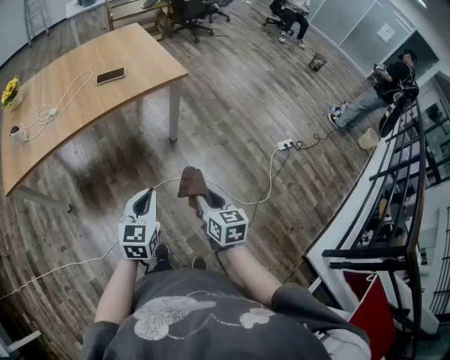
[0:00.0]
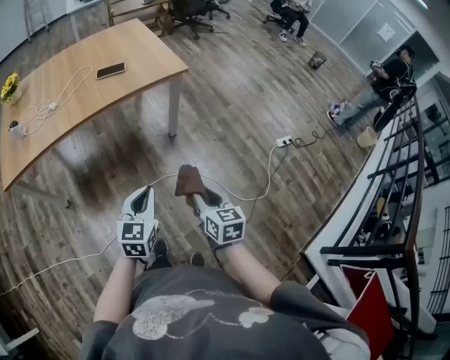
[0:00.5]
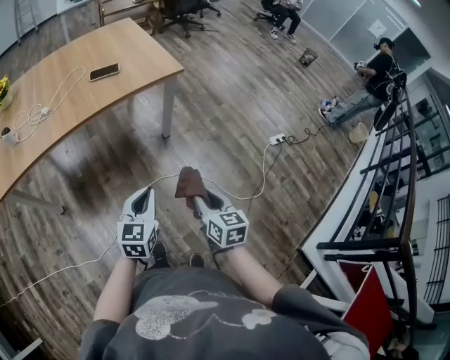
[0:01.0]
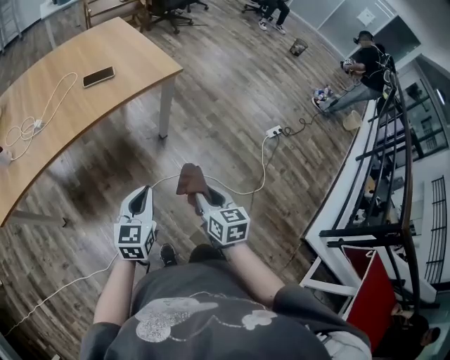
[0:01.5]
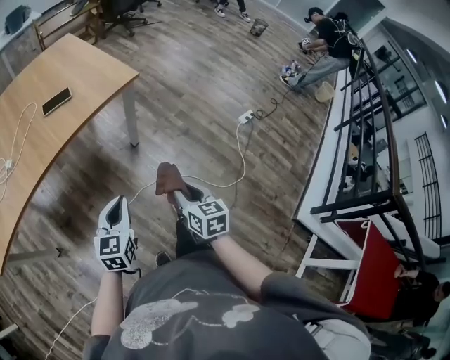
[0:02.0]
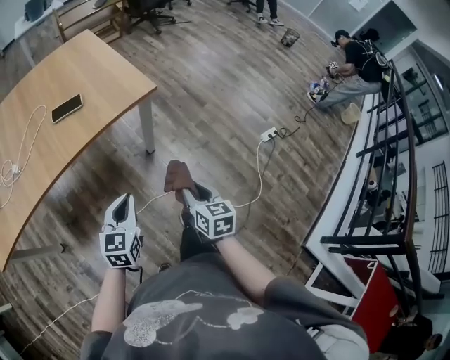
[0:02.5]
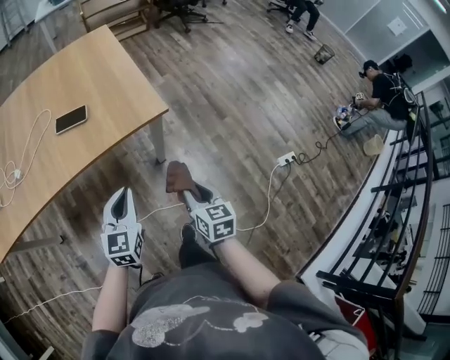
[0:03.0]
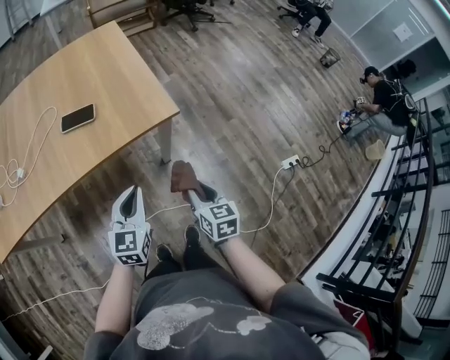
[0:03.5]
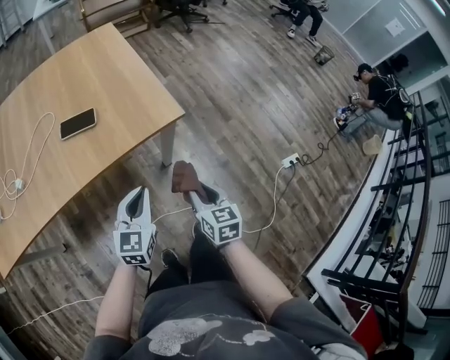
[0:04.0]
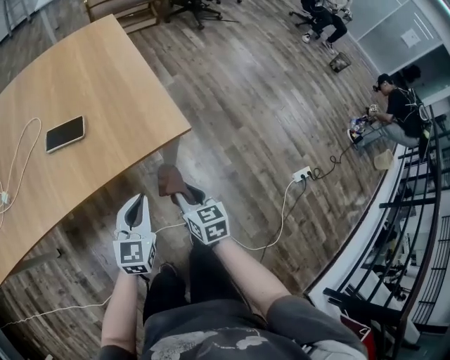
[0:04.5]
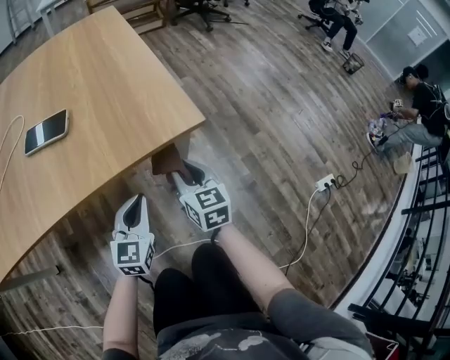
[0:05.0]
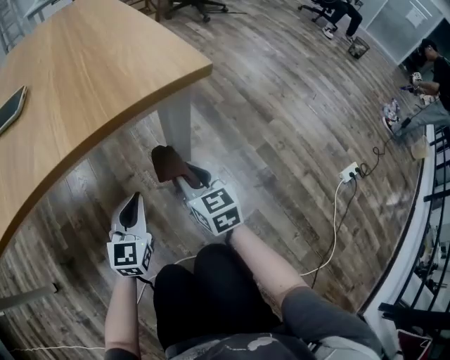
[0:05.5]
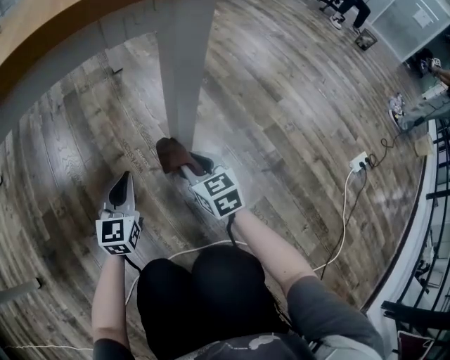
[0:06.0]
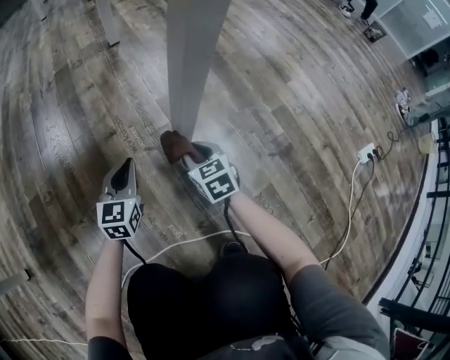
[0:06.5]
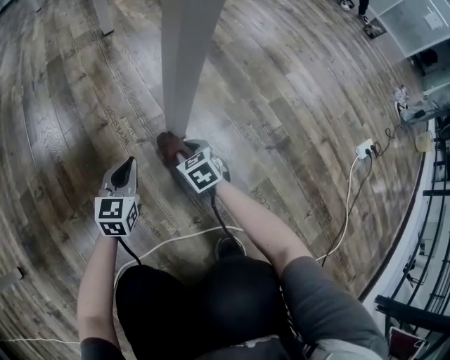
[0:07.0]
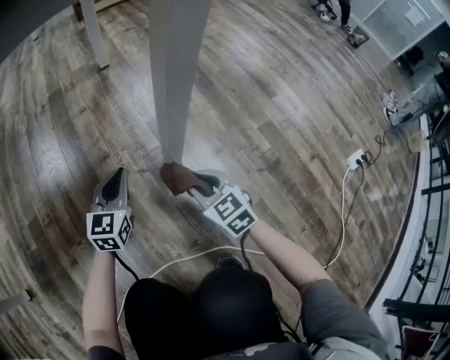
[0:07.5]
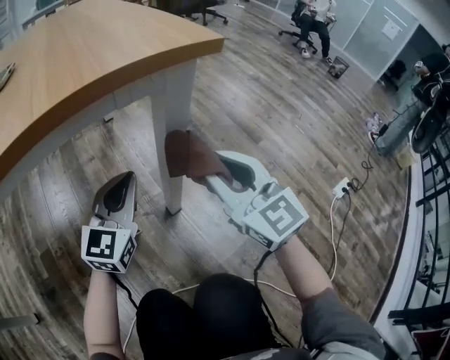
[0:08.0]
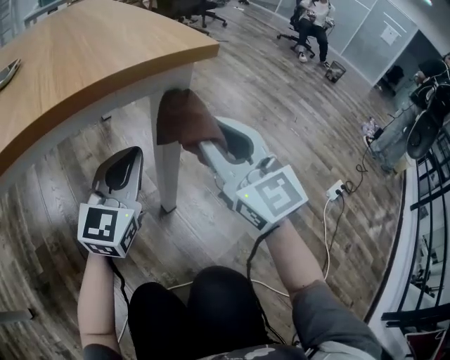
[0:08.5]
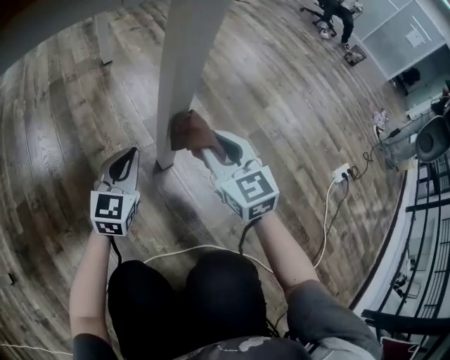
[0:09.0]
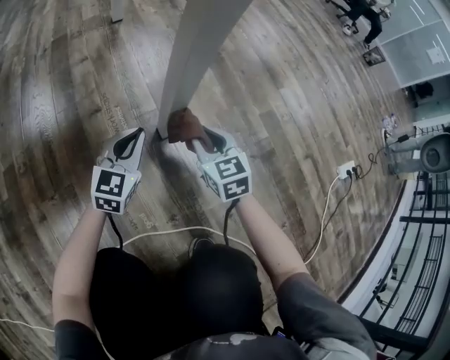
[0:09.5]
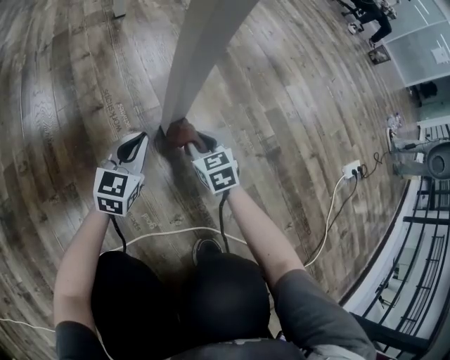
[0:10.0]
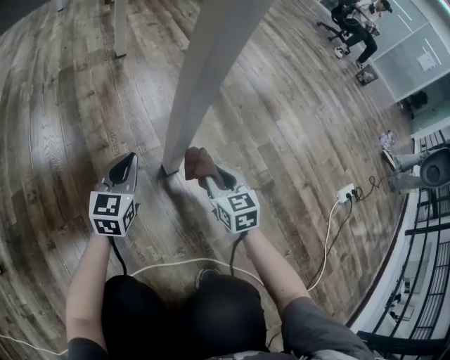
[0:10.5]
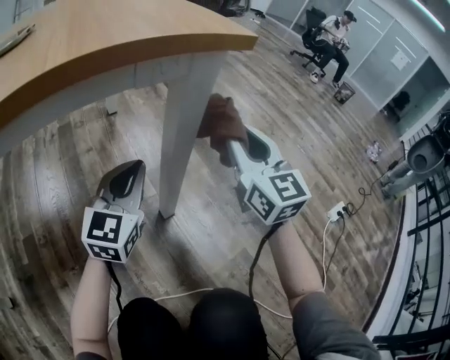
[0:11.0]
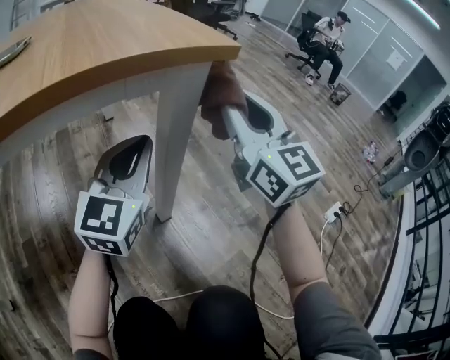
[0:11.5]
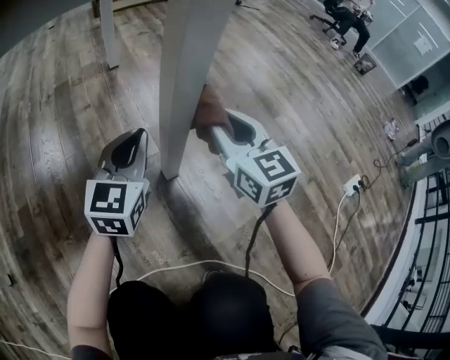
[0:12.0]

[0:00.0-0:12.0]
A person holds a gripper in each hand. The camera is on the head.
0:00.0 to 0:02.0: The right gripper is displaced forward by roughly 5 cm, while the left gripper moves forward and to the left, some 10 cm.
0:02.0 to 0:04.0: Both grippers travel together forward, some 25 cm.
0:04.0 to 0:06.0: The right gripper moves downward and forward, approximately 50 cm; the left gripper is displaced downward by some 50 cm.
0:06.0 to 0:08.0: The right gripper travels upward by roughly 25 cm, and turns by roughly 30 degrees. Meanwhile the left gripper shifts approximately 15 cm upward.
0:08.0 to 0:10.0: The grippers both shift downward by roughly 35 cm. The right gripper points its fingers some 40 degrees further downward.
0:10.0 to 0:12.0: The right gripper goes approximately 30 cm upward, and turns by roughly 30 degrees; the left gripper moves upward, roughly 20 cm.

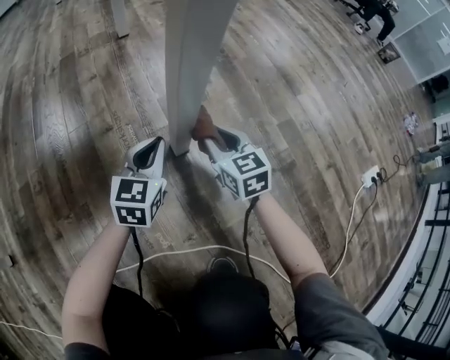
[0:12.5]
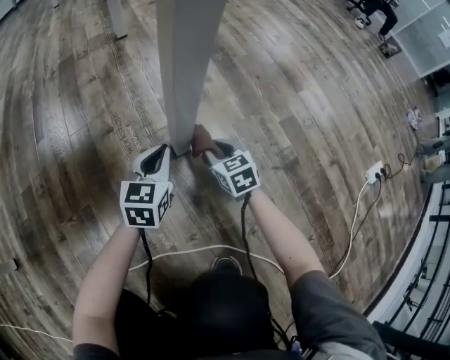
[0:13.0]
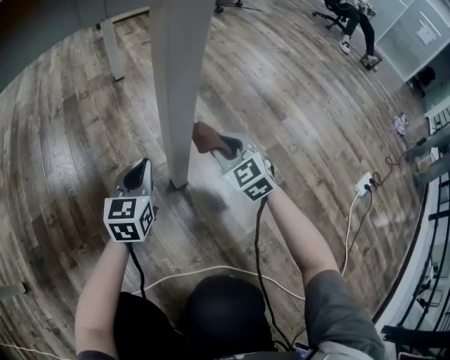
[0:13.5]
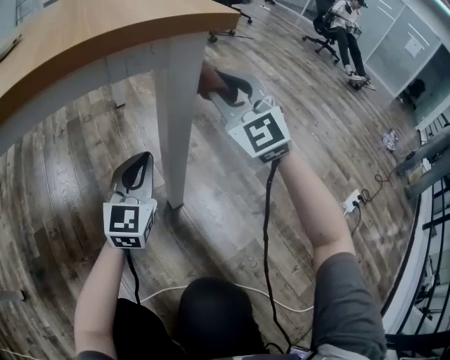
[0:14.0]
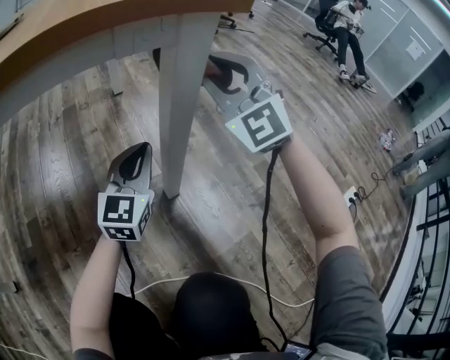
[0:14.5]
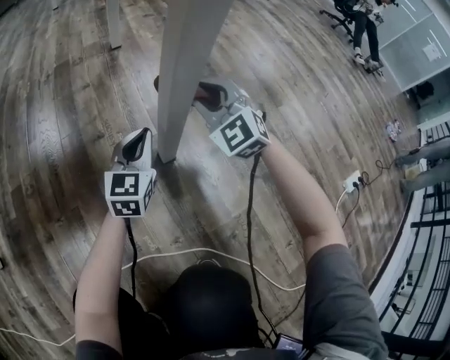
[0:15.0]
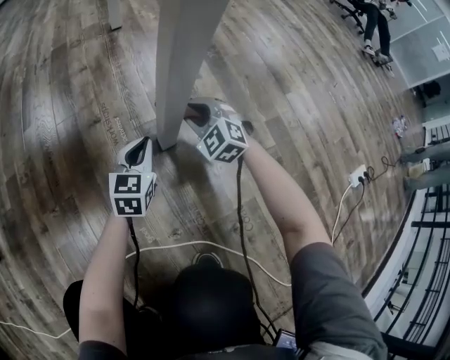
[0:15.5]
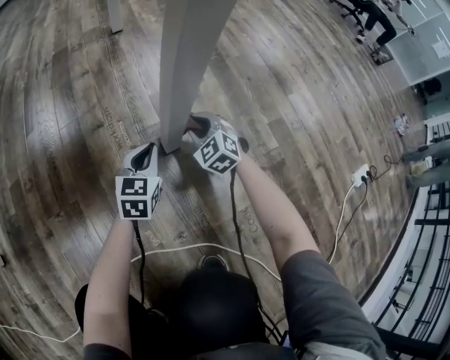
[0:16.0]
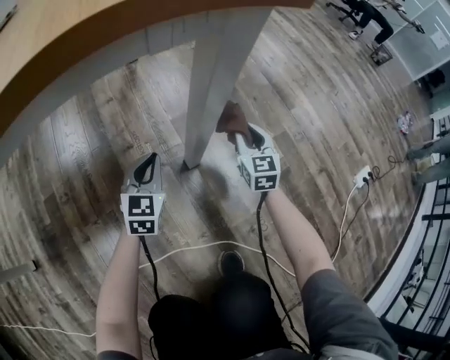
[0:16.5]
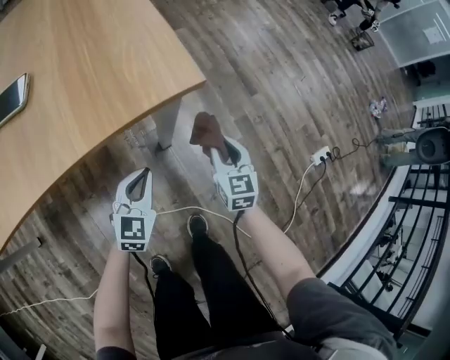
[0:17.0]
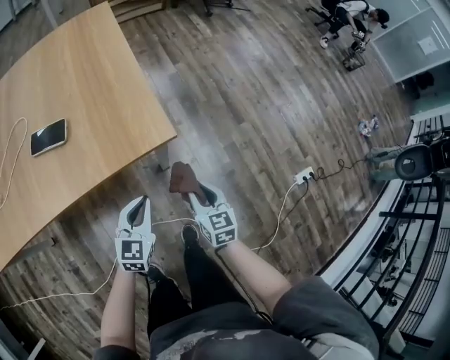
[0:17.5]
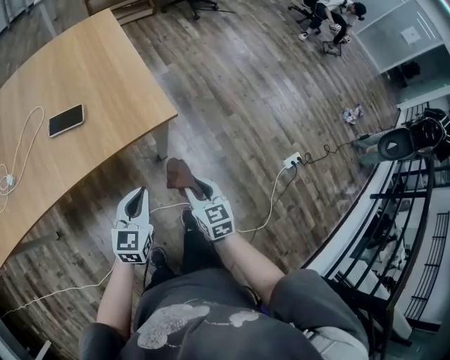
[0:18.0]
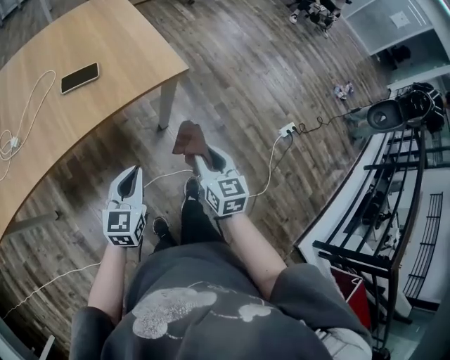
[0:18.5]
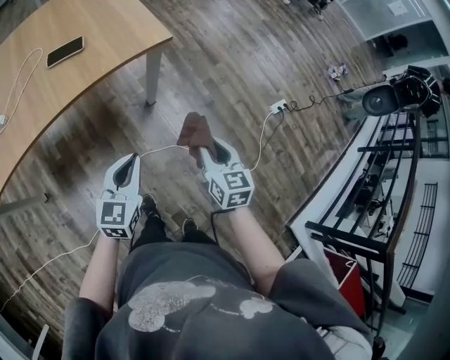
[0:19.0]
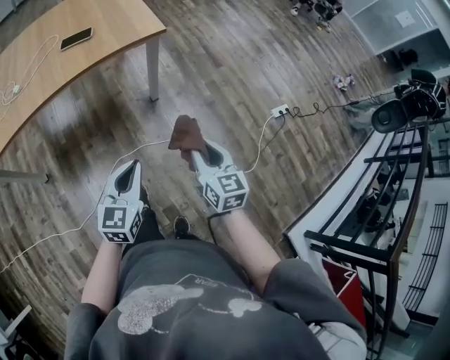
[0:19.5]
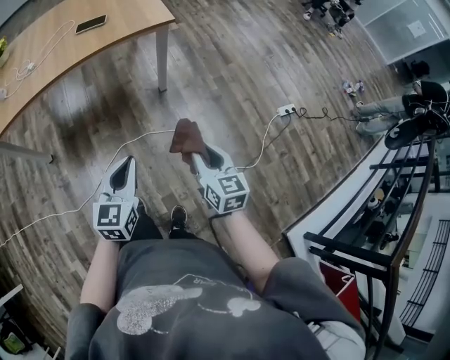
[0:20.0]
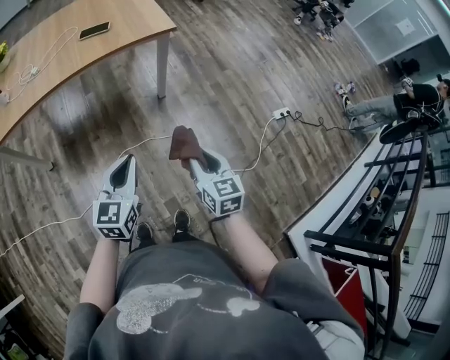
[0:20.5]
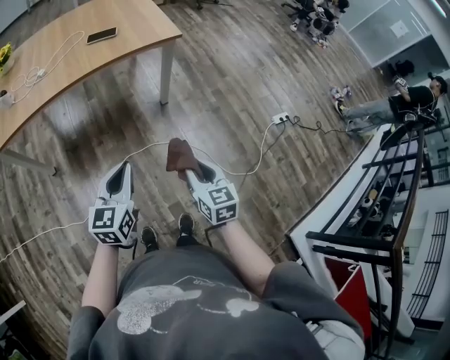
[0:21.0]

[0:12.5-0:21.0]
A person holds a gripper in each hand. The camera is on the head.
0:12.5 to 0:14.5: The left gripper is displaced upward by some 20 cm, and turns by approximately 20 degrees; the right gripper goes some 35 cm upward, and rotates around the line of its fingers by roughly 60 degrees, counterclockwise from behind.
0:14.5 to 0:16.5: The left gripper moves downward and to the left, about 15 cm, and turns by approximately 20 degrees. Meanwhile the right gripper heads downward, covering approximately 30 cm, and rotates approximately 60 degrees.
0:16.5 to 0:19.0: The grippers both shift upward and backward by some 60 cm.
0:19.0 to 0:21.0: Both grippers move backward, approximately 25 cm.

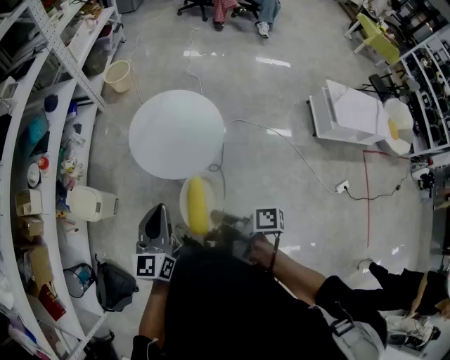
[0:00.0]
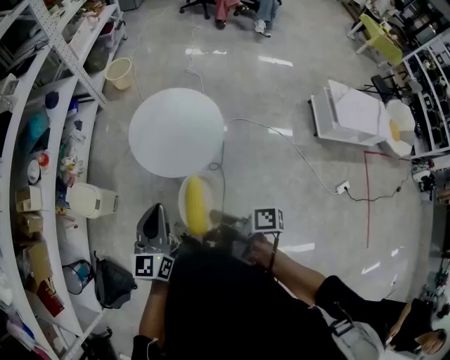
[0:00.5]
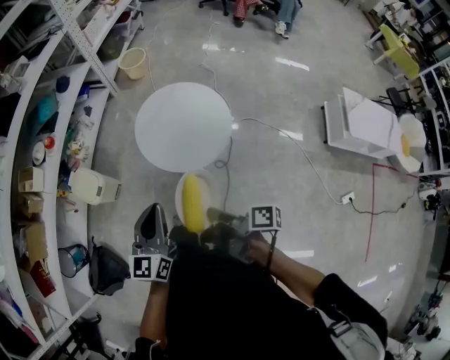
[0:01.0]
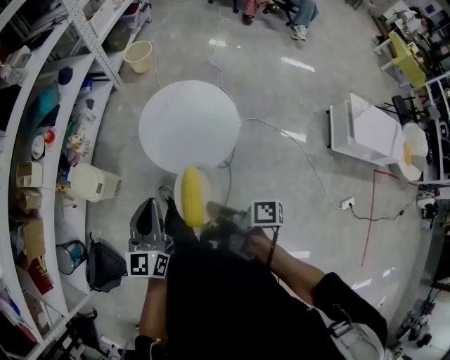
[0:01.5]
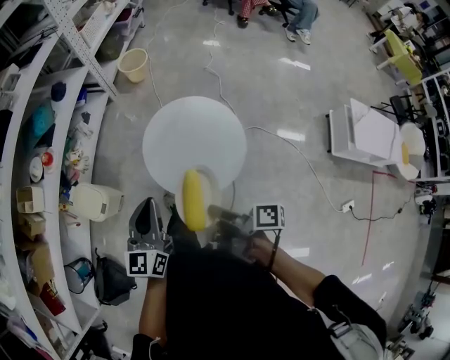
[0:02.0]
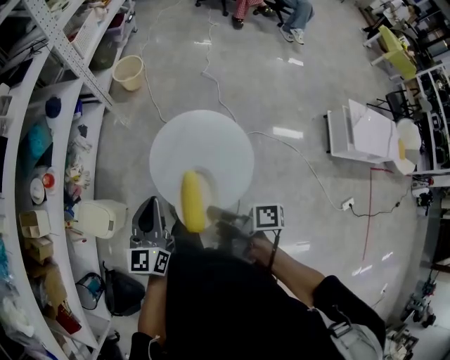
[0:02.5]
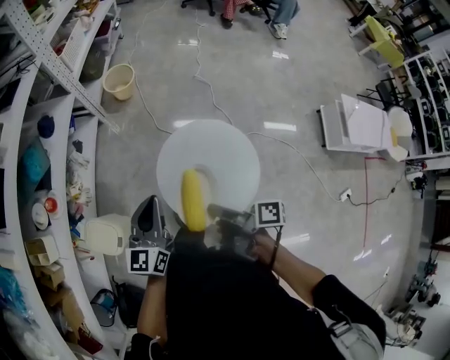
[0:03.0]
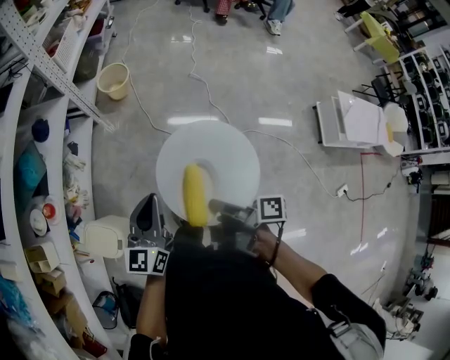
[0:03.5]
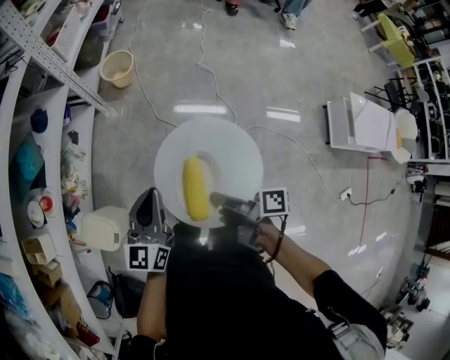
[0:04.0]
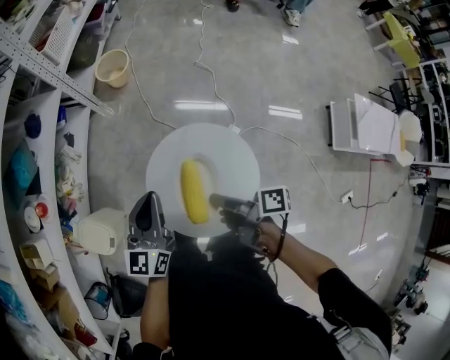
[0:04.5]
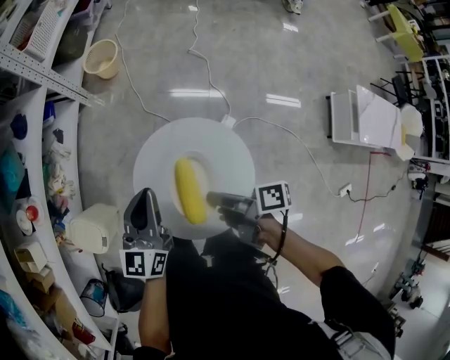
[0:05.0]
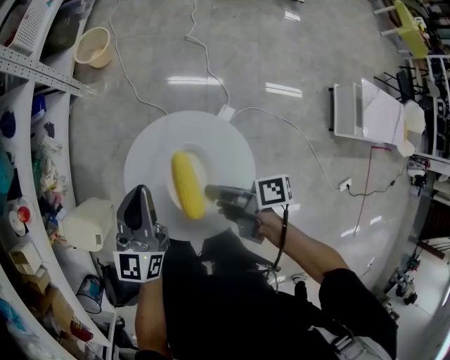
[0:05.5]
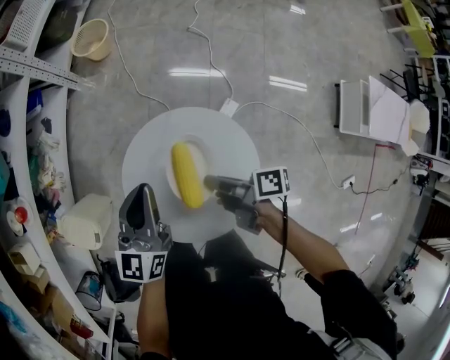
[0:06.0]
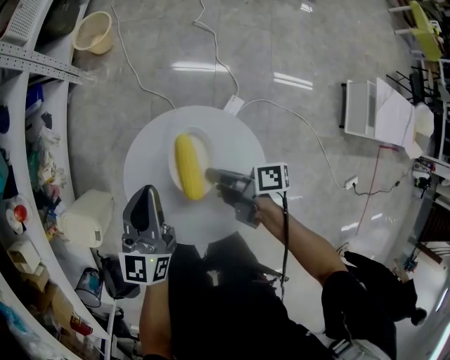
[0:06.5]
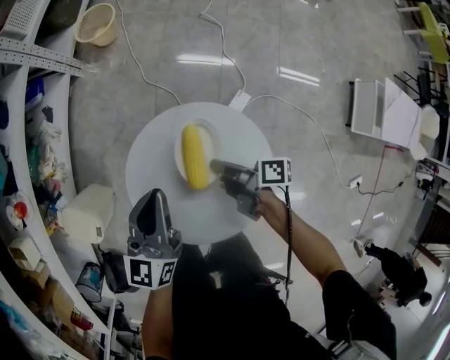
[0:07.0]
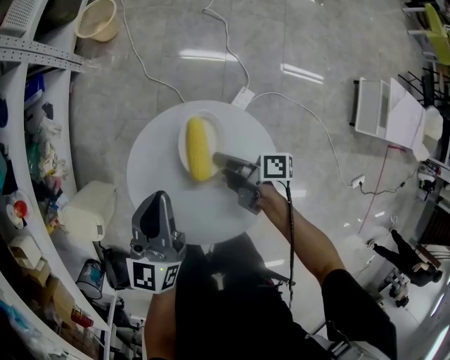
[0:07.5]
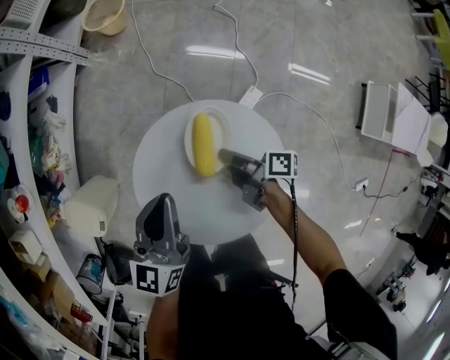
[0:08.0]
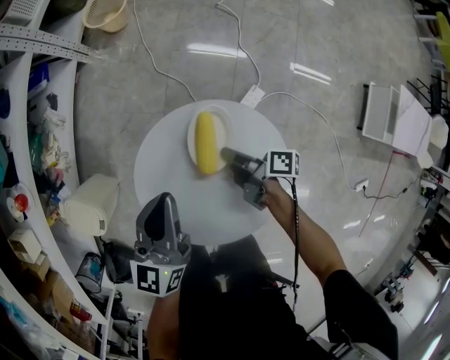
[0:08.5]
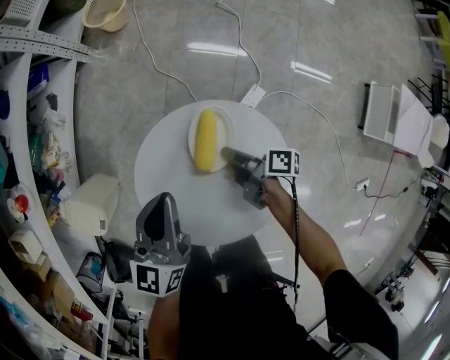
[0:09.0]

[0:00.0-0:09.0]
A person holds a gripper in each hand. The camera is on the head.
0:00.0 to 0:02.0: The left gripper ends up roughly 15 cm from where it was.
0:02.0 to 0:04.5: The left gripper moves some 25 cm.
0:04.5 to 0:07.0: The left gripper is displaced downward by approximately 10 cm.
